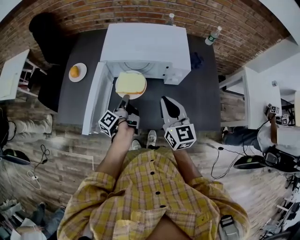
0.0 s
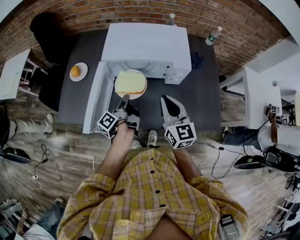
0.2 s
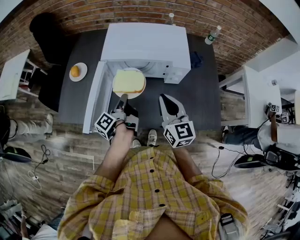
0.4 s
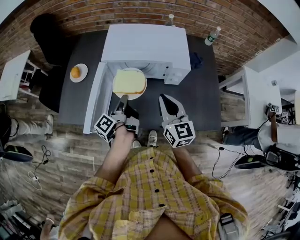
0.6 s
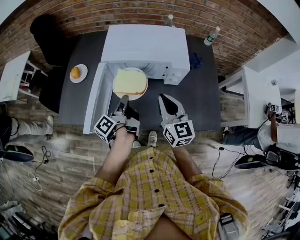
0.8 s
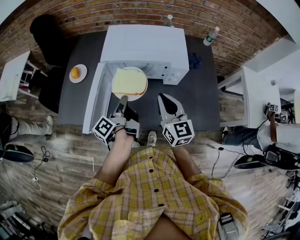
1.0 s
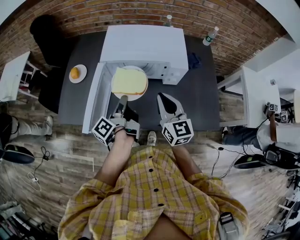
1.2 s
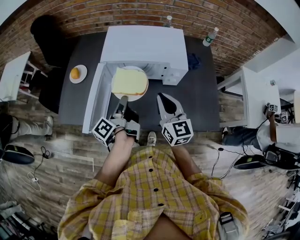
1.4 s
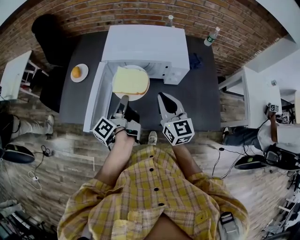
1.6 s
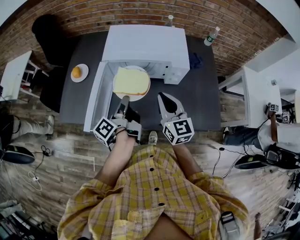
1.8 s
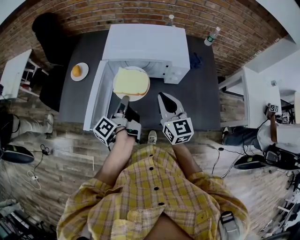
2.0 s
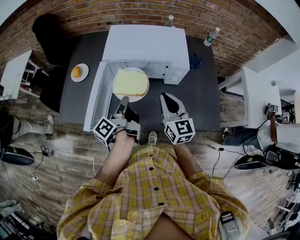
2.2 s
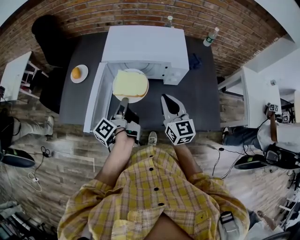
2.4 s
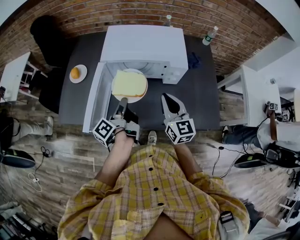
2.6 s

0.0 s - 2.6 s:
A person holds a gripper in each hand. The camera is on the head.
0.0 s - 1.2 s: The left gripper travels upward by about 10 cm.
1.2 s - 2.6 s: The grippers stay close to where they were, moving slightly.

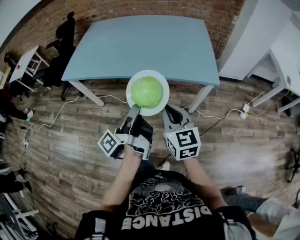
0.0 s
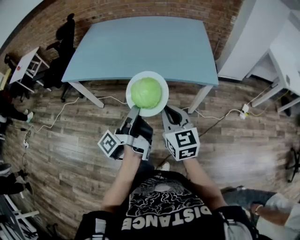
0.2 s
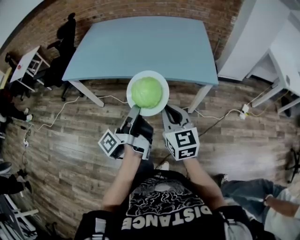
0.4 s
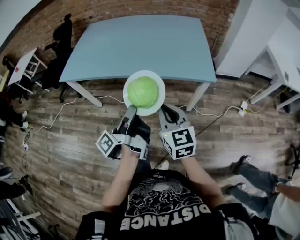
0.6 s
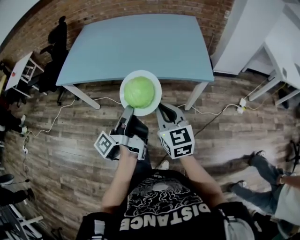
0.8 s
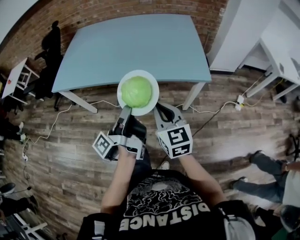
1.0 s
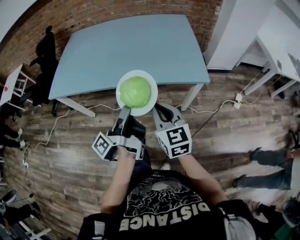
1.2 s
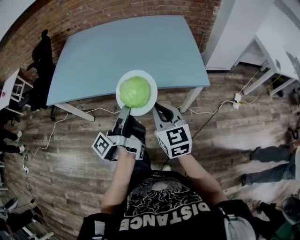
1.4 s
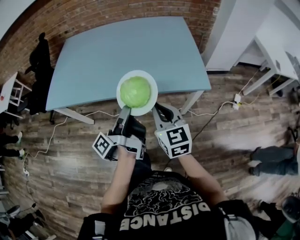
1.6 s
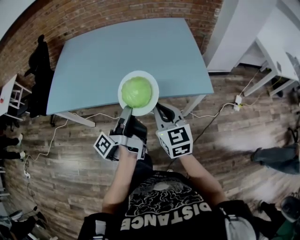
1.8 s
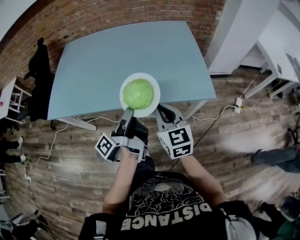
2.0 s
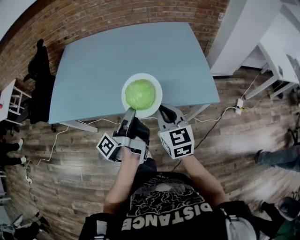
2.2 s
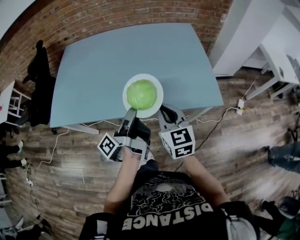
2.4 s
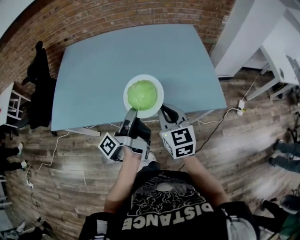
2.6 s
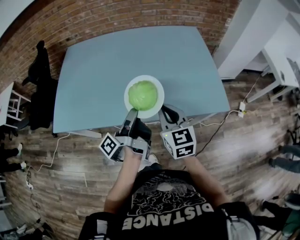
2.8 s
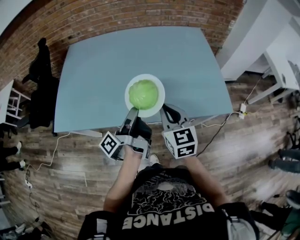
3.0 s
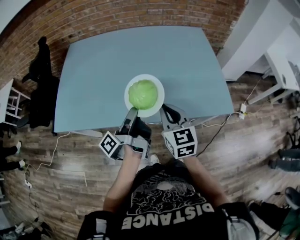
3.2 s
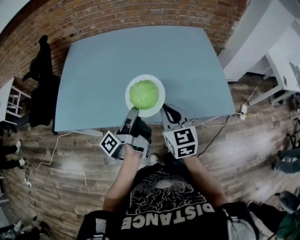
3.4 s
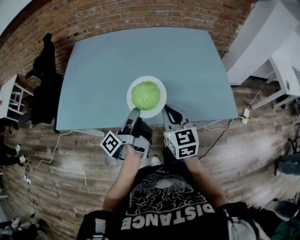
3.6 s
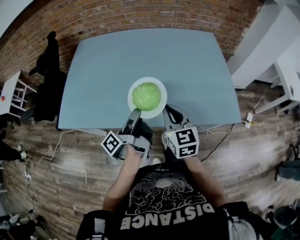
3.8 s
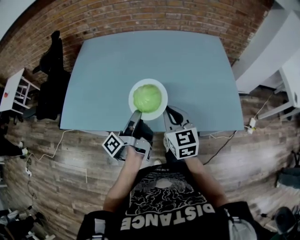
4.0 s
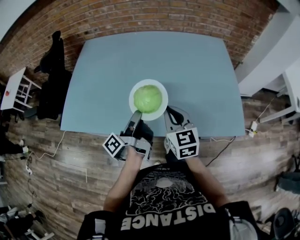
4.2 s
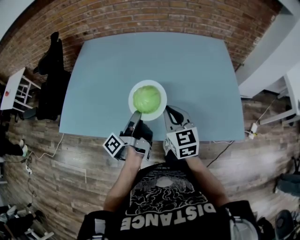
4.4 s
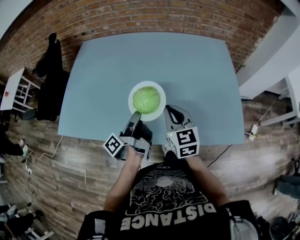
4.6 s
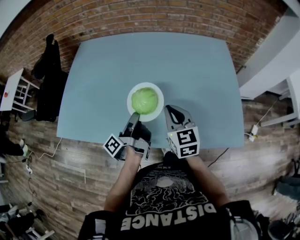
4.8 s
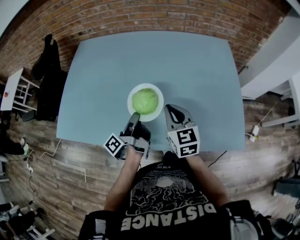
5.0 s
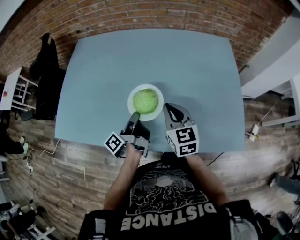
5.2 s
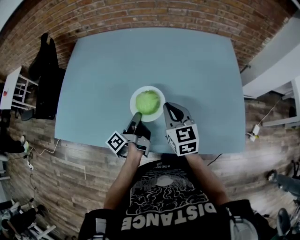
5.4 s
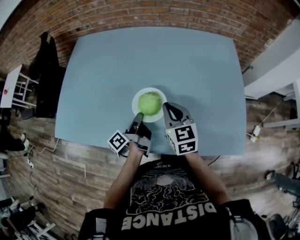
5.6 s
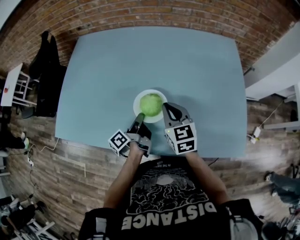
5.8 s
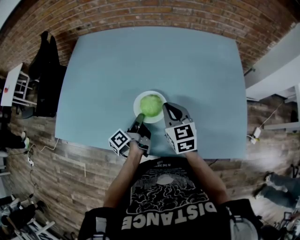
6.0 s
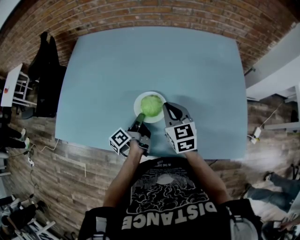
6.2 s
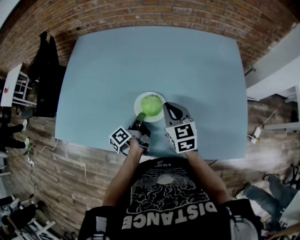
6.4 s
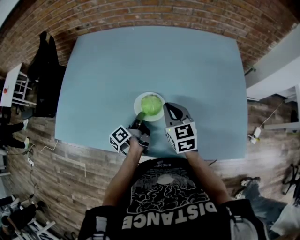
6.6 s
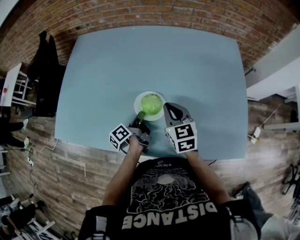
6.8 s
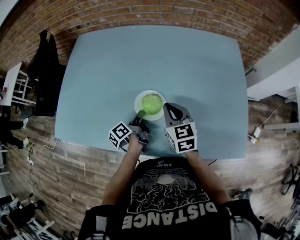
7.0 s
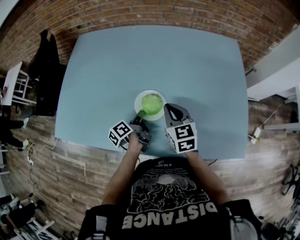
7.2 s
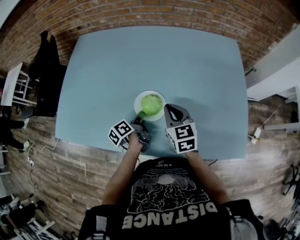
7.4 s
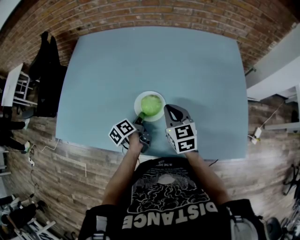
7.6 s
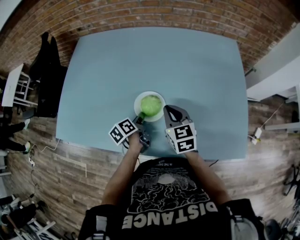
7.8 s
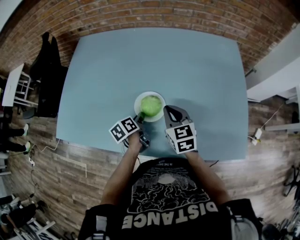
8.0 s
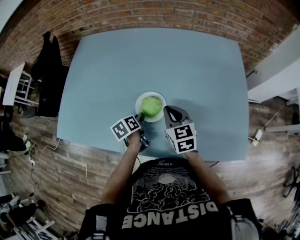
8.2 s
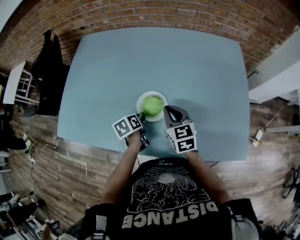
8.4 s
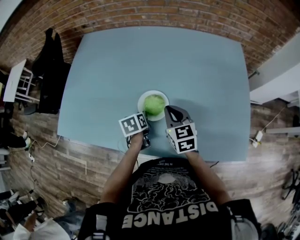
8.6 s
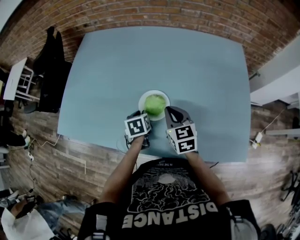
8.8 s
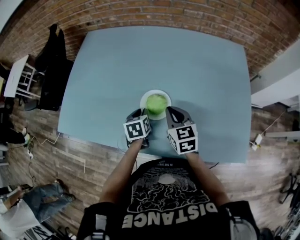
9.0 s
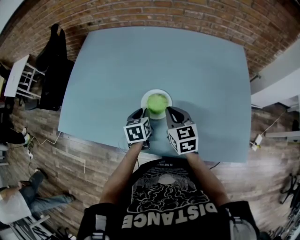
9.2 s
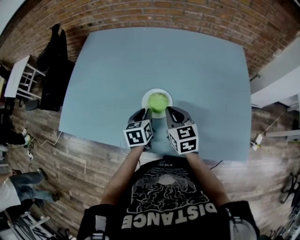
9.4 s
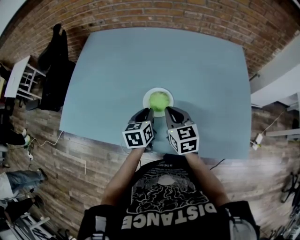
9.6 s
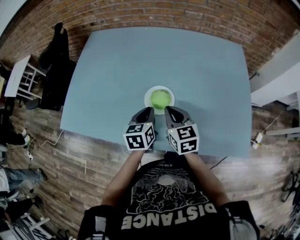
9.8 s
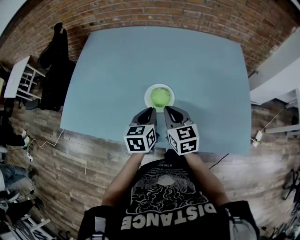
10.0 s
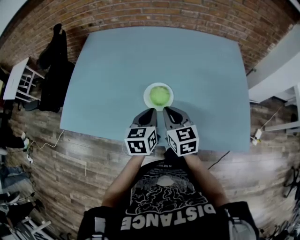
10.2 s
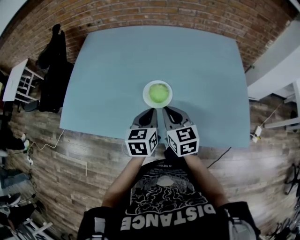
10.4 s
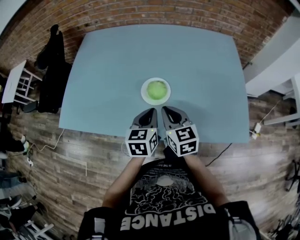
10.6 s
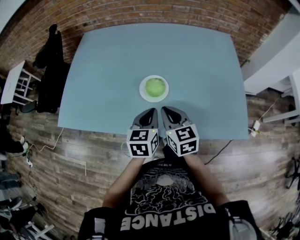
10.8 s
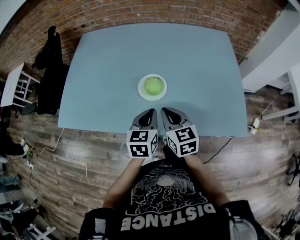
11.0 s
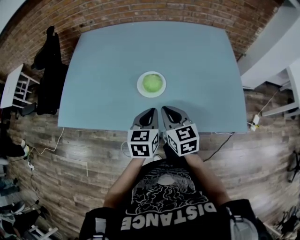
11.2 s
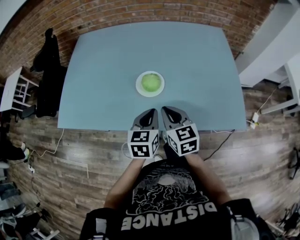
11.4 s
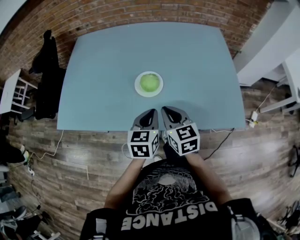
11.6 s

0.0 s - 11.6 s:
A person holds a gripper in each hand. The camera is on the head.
0.0 s - 1.4 s: The right gripper ends up about 10 cm from where it was.
1.4 s - 2.8 s: The right gripper changes place by roughly 20 cm.
2.8 s - 4.4 s: The right gripper shifts by approximately 10 cm.
4.4 s - 5.8 s: The right gripper shifts by roughly 10 cm.
8.8 s - 10.2 s: The right gripper ends up some 10 cm from where it was.
10.2 s - 11.6 s: The right gripper shifts by about 10 cm.

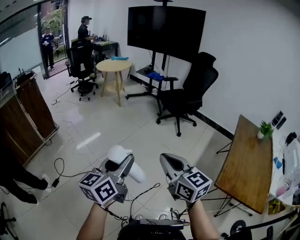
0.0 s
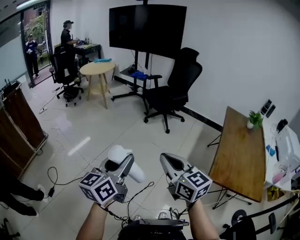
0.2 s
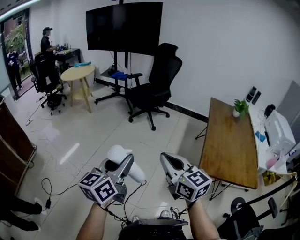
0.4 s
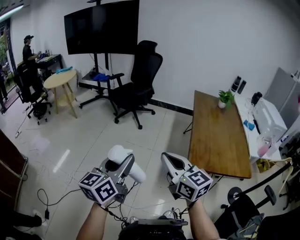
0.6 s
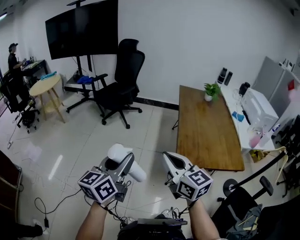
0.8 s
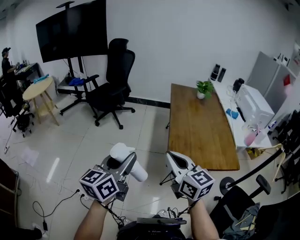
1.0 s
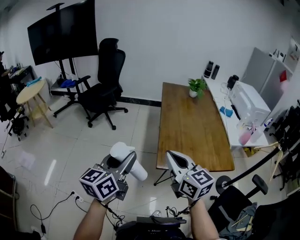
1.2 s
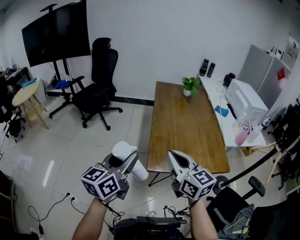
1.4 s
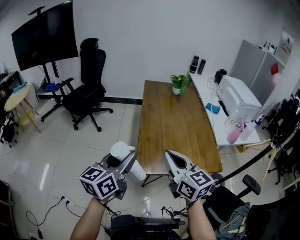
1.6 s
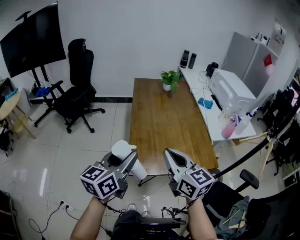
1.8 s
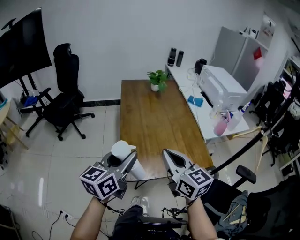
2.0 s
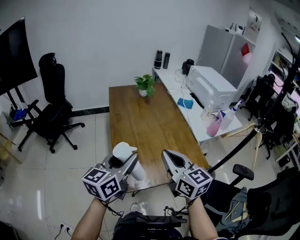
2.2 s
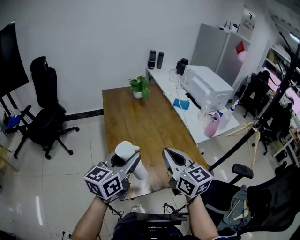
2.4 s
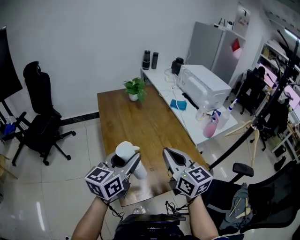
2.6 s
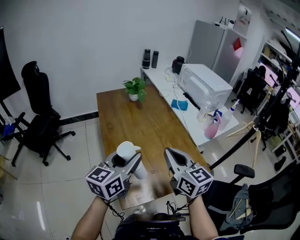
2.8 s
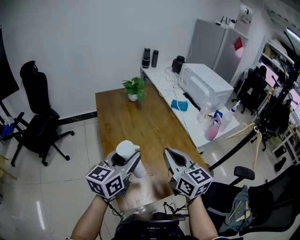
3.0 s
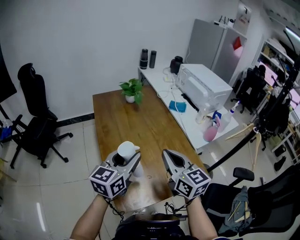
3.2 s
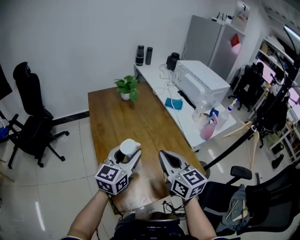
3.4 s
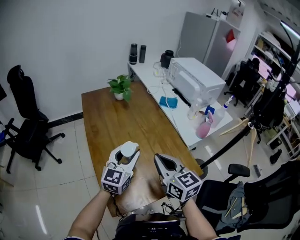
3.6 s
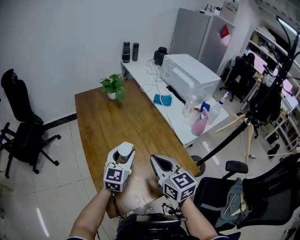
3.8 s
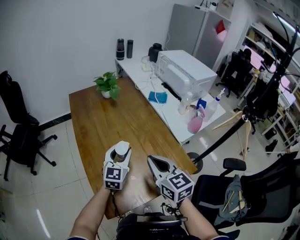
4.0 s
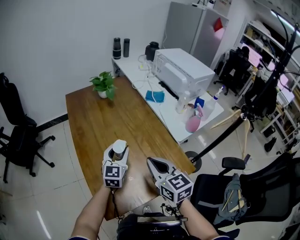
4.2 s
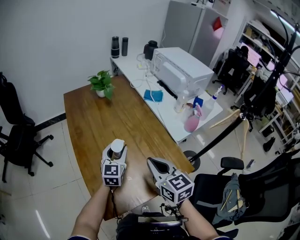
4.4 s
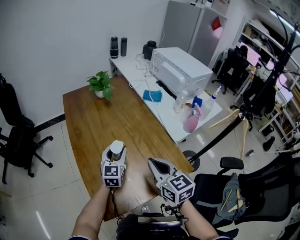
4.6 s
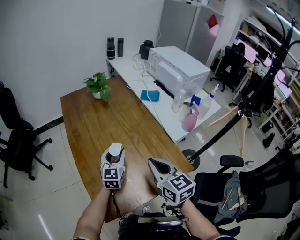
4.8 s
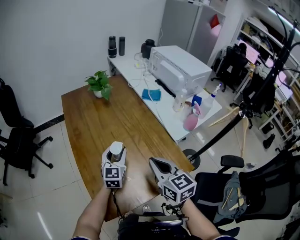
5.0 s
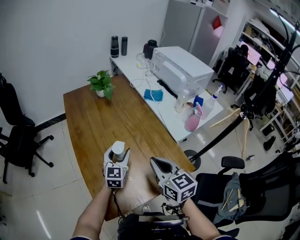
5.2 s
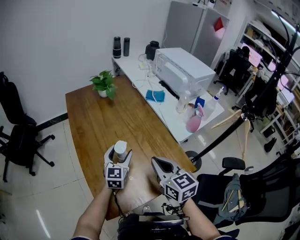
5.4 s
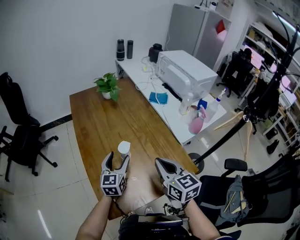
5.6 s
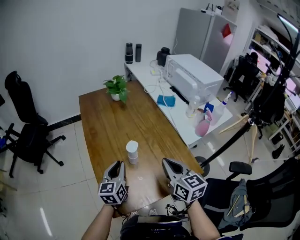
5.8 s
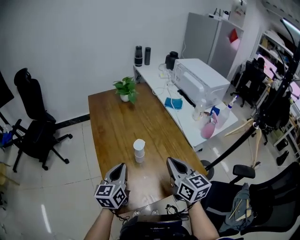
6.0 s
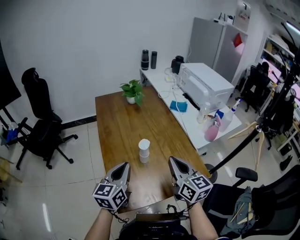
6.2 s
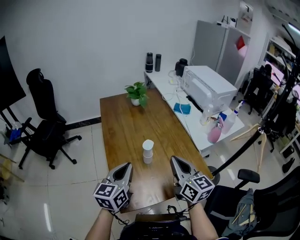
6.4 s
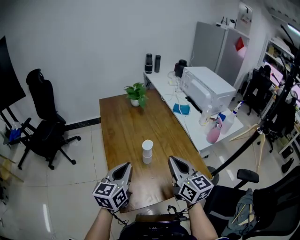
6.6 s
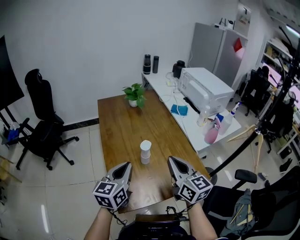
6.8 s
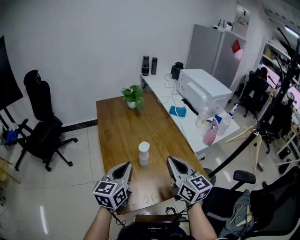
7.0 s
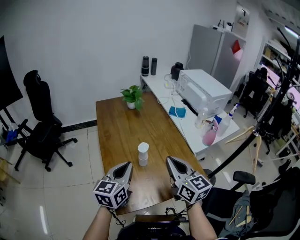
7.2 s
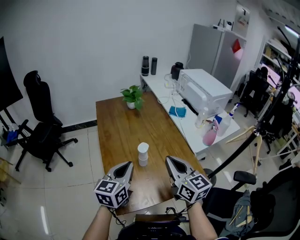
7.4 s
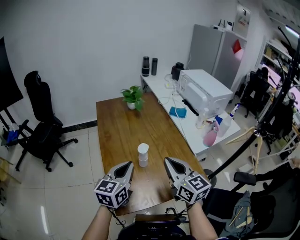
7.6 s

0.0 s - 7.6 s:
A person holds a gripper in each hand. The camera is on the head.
0.0 s - 1.6 s: Both grippers are carried some 50 cm. The left gripper rotates about 40 degrees. The right gripper changes its angle by roughly 40 degrees.
1.6 s - 3.0 s: Both grippers travel together forward and to the right, roughly 25 cm. The left gripper swivels roughly 30 degrees, while the right gripper rotates roughly 20 degrees.
3.0 s - 4.6 s: The right gripper moves downward and to the right, roughly 10 cm. Meanwhile the left gripper heads downward, forward and to the right, covering about 20 cm, and changes its angle by about 20 degrees.
4.6 s - 6.0 s: The left gripper is displaced backward, to the left and upward by about 15 cm, swivels roughly 20 degrees, and closes its fingers.
6.0 s - 7.6 s: The left gripper shifts roughly 5 cm upward, while the right gripper moves some 5 cm.

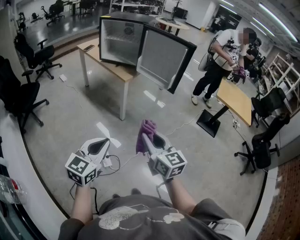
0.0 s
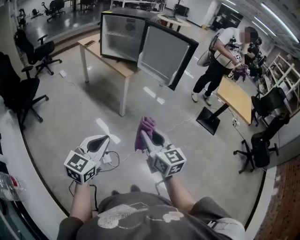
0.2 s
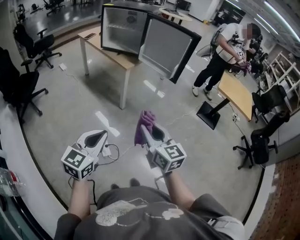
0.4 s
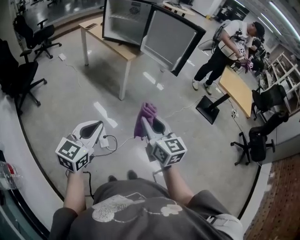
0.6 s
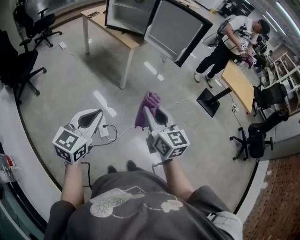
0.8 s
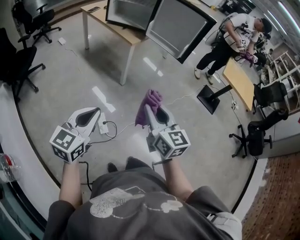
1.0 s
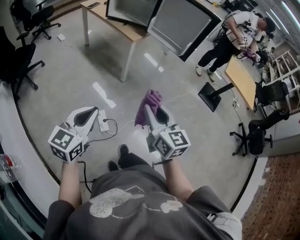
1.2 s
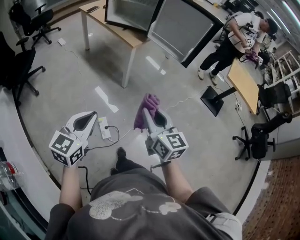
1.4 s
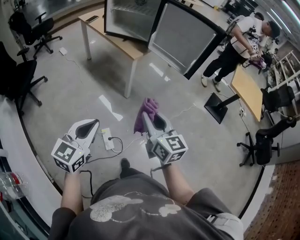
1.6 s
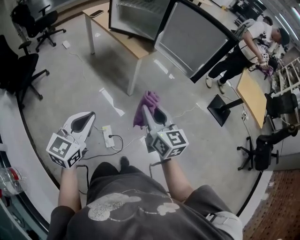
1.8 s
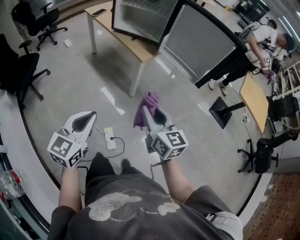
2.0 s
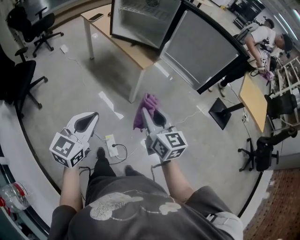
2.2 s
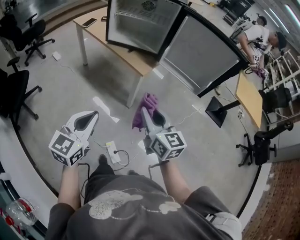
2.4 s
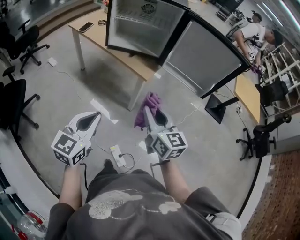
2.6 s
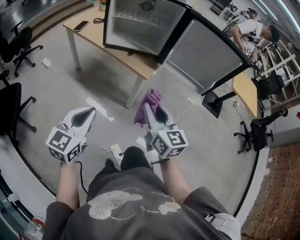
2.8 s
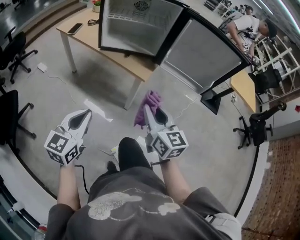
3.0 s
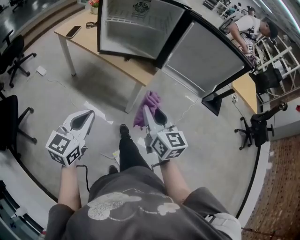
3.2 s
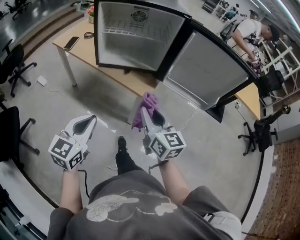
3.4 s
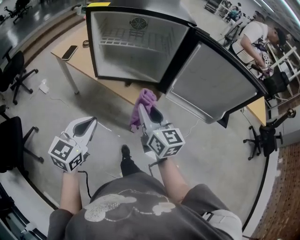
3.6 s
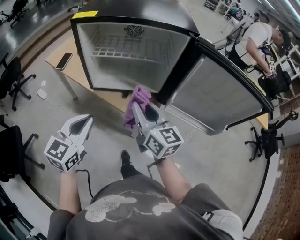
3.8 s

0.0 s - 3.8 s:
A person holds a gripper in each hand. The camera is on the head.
0.0 s - 1.2 s: The left gripper shifts about 10 cm to the left.
1.2 s - 2.6 s: The two grippers go some 35 cm forward and to the left.
2.6 s - 3.8 s: Both grippers travel together forward, roughly 30 cm.
